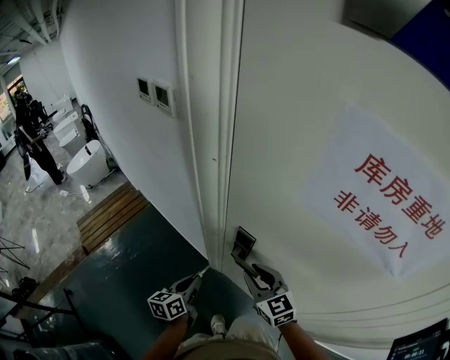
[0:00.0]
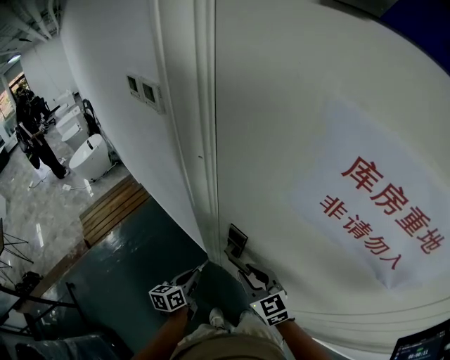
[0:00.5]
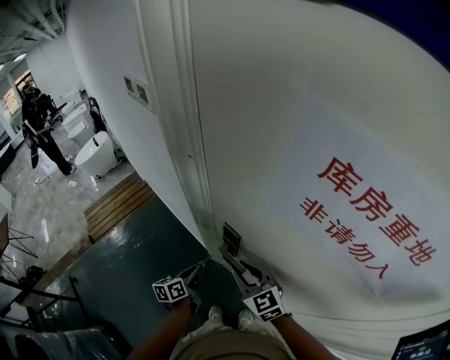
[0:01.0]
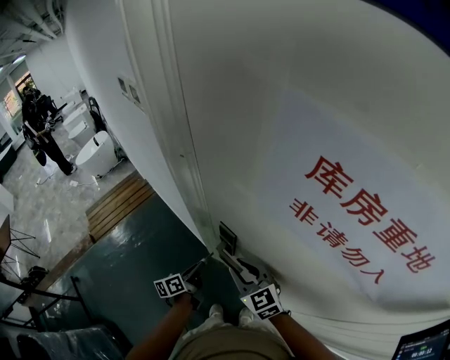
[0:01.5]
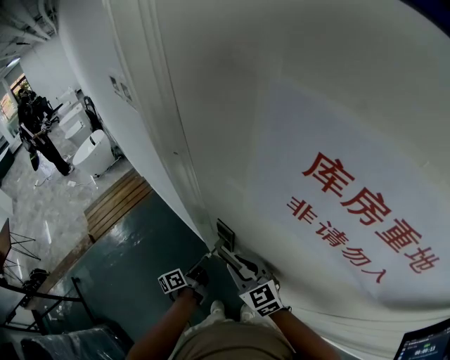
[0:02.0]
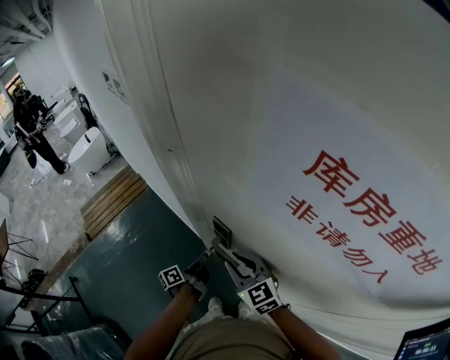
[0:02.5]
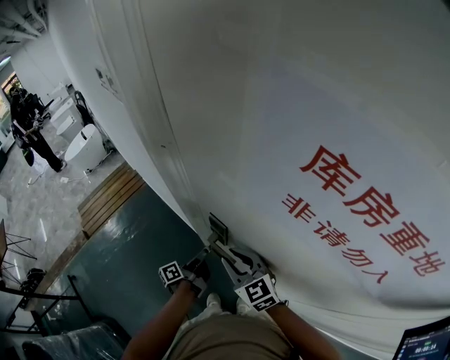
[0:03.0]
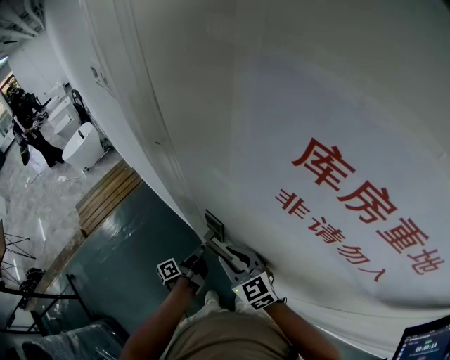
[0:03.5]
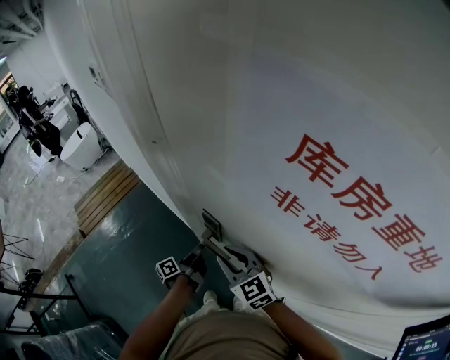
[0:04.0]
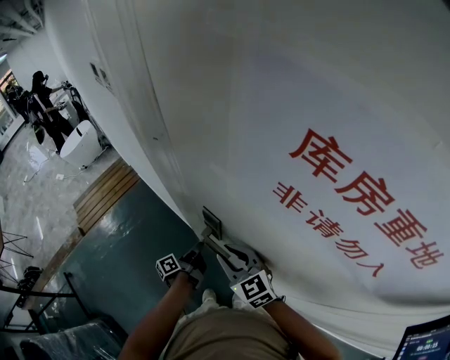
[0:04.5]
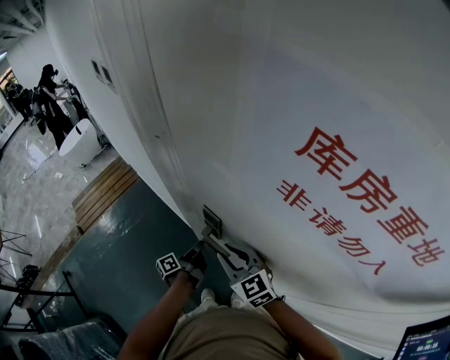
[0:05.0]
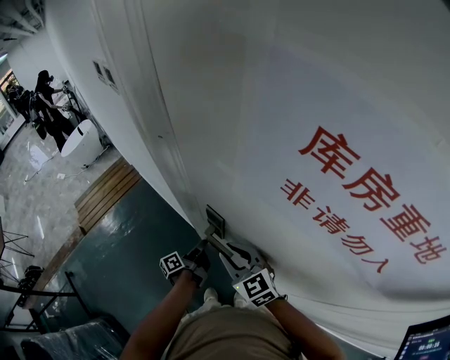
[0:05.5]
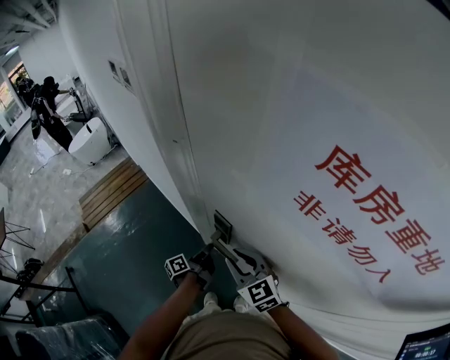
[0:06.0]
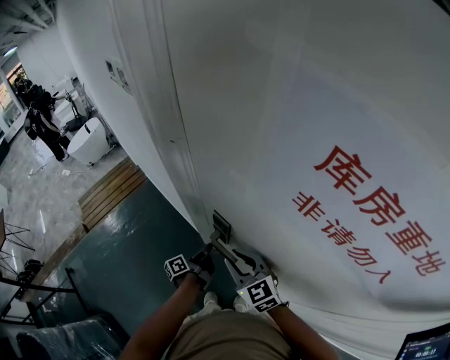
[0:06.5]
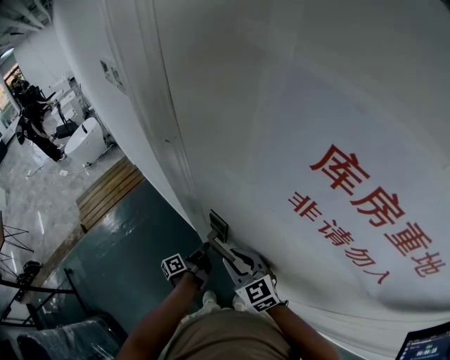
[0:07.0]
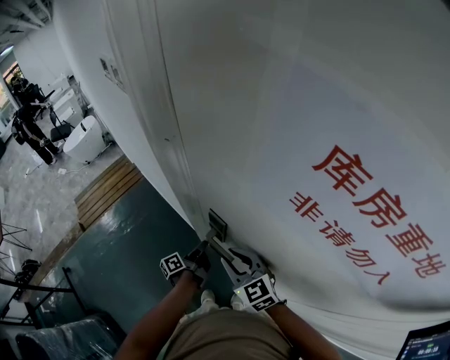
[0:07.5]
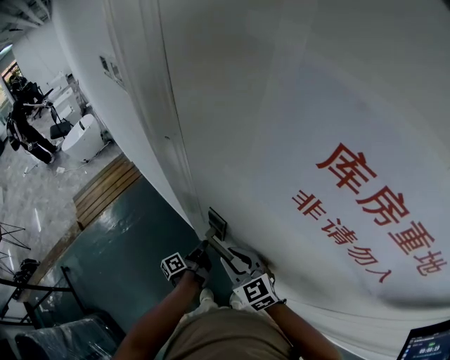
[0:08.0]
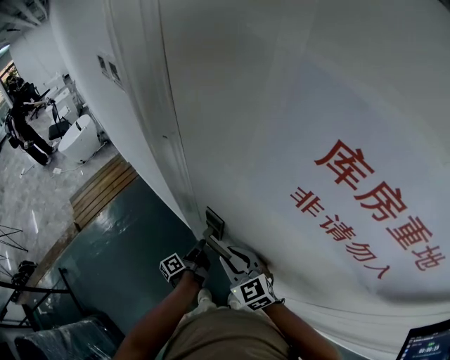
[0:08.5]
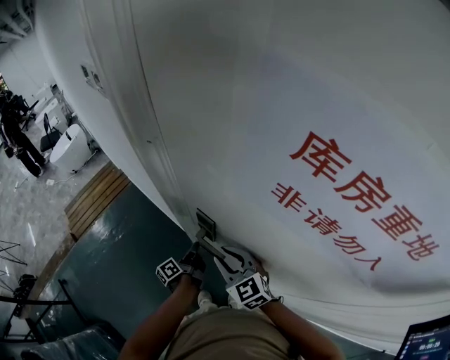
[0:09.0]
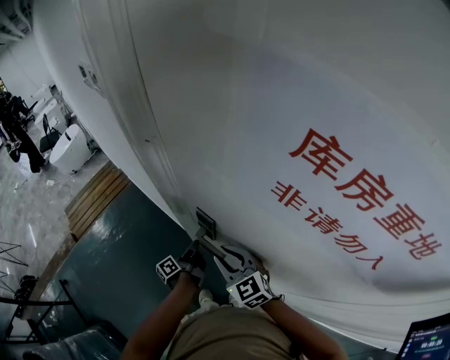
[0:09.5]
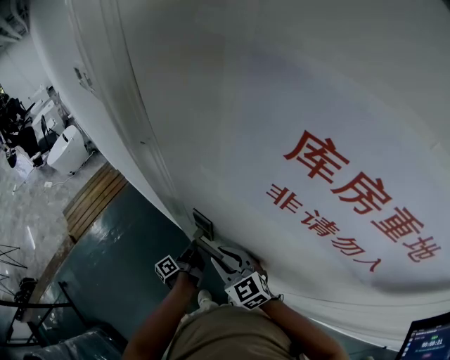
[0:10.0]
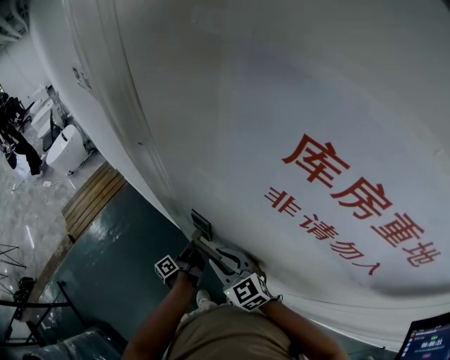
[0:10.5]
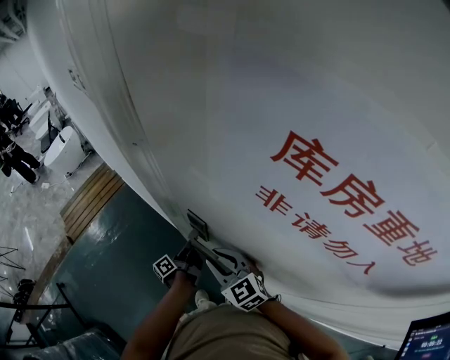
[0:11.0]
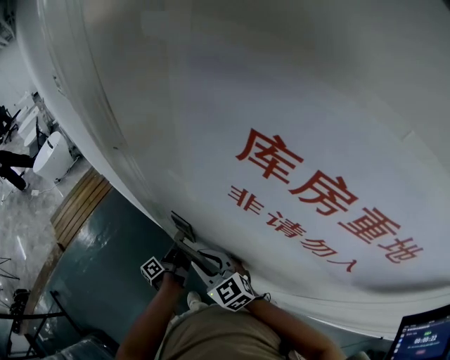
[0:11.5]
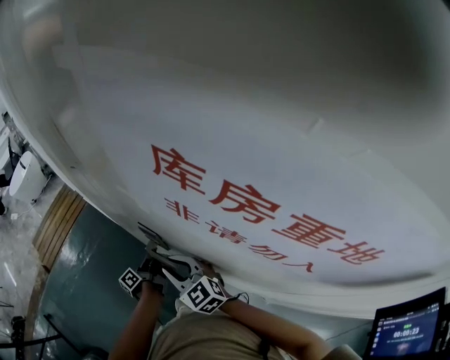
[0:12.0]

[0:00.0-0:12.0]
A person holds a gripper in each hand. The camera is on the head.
0:00.0 to 0:02.0: The left gripper heads to the right and downward, covering about 10 cm, and rotates about 40 degrees.
0:02.0 to 0:06.0: The grippers move only a little.
0:06.0 to 0:08.0: The two grippers keep their place.
0:08.0 to 0:10.0: Both grippers stay put.
0:10.0 to 0:12.0: The grippers stay close to where they were, moving slightly.

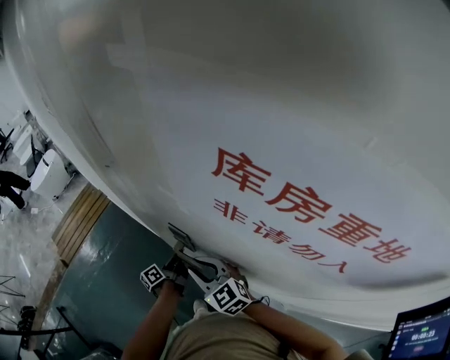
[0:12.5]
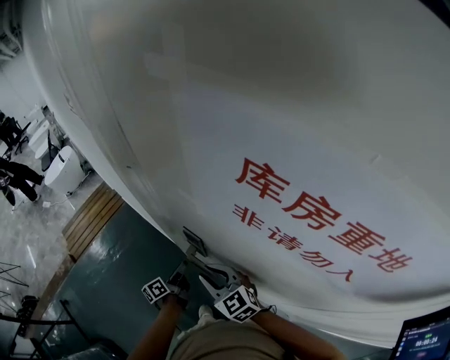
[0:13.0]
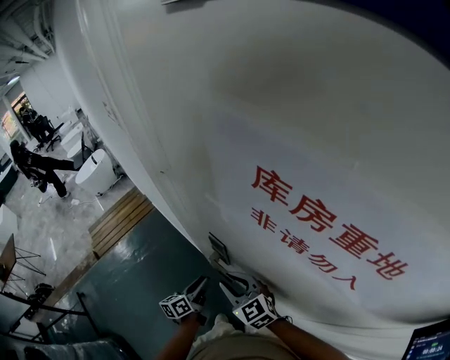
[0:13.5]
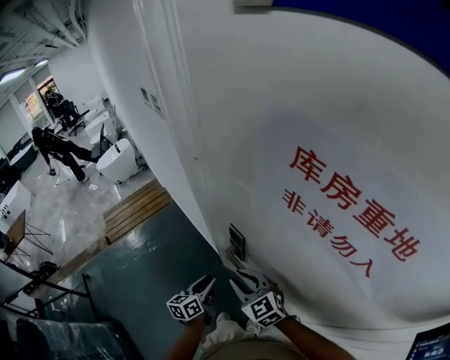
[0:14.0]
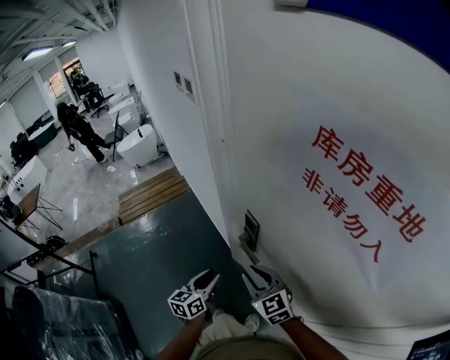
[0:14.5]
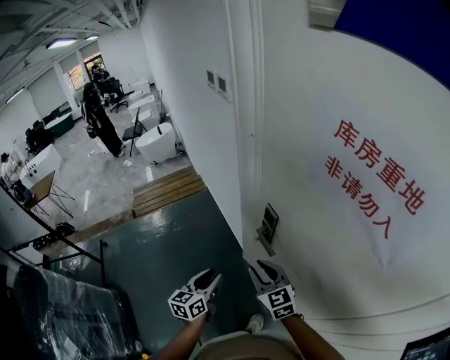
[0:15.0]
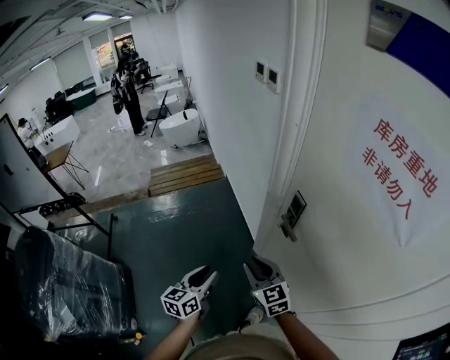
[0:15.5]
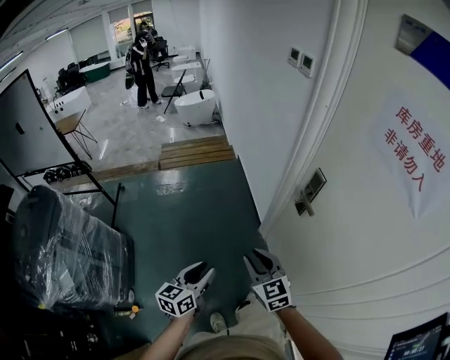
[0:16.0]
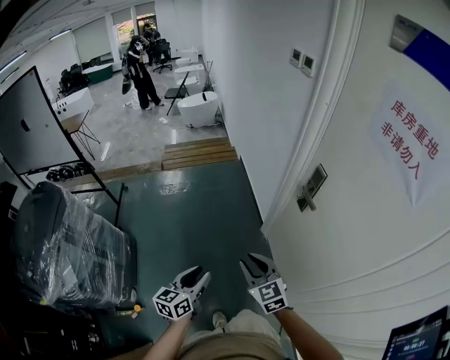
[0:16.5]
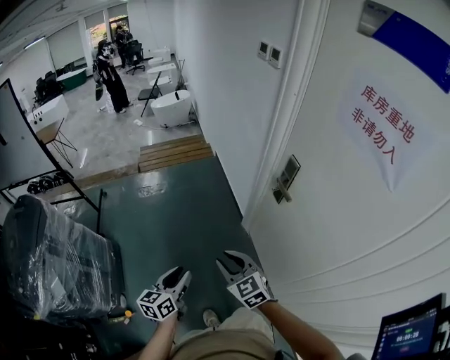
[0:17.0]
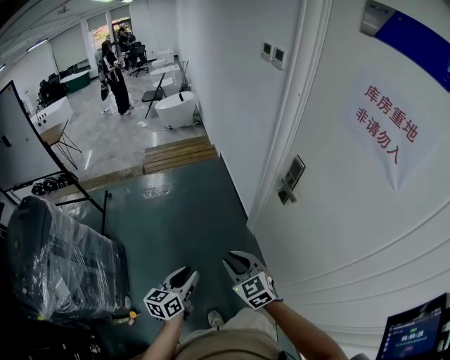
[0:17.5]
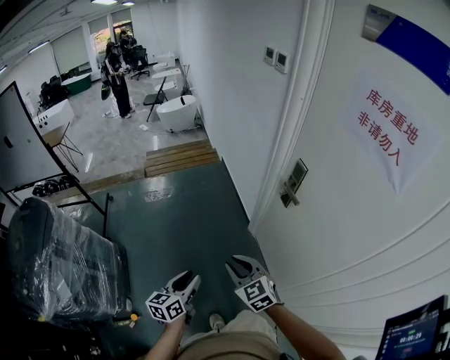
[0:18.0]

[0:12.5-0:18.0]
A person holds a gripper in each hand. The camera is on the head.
0:12.5 to 0:14.5: The left gripper heads backward, upward and to the left, covering roughly 20 cm, twists some 50 degrees clockwise, seen from behind, and opens its fingers. The right gripper is displaced backward by about 5 cm.
0:14.5 to 0:16.0: The left gripper heads backward and to the left, covering some 35 cm, while the right gripper goes some 30 cm to the left and backward.
0:16.0 to 0:18.0: The right gripper ends up approximately 5 cm from where it was; the left gripper moves about 5 cm.

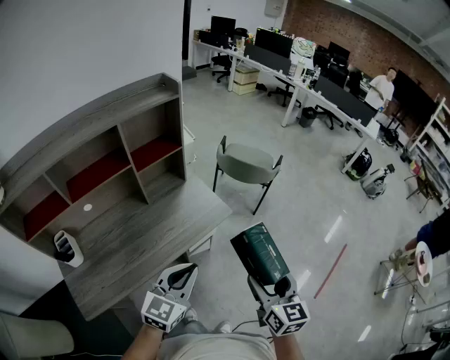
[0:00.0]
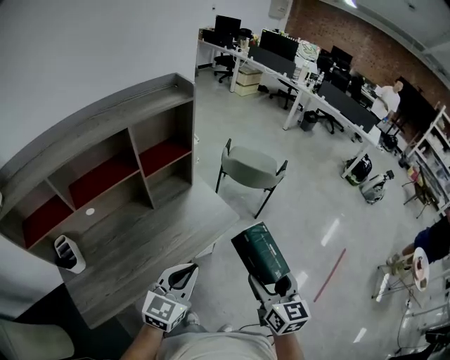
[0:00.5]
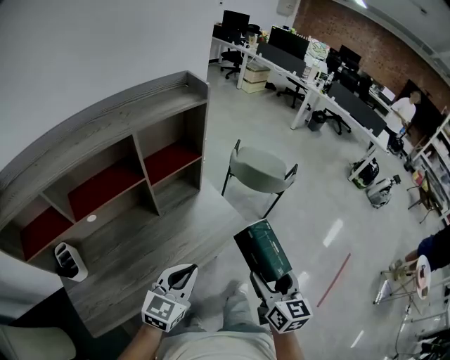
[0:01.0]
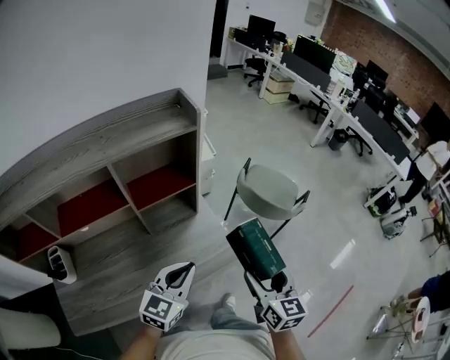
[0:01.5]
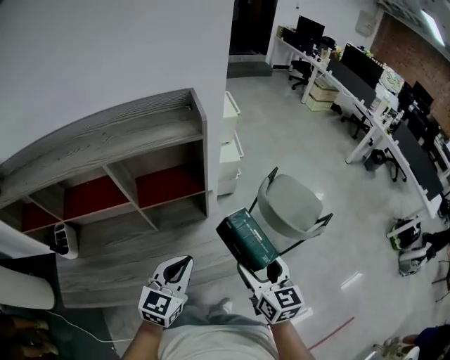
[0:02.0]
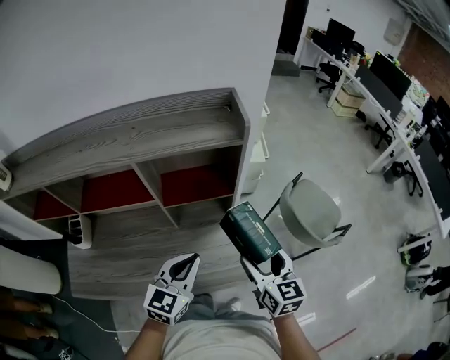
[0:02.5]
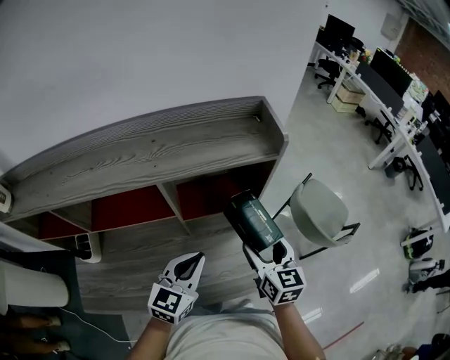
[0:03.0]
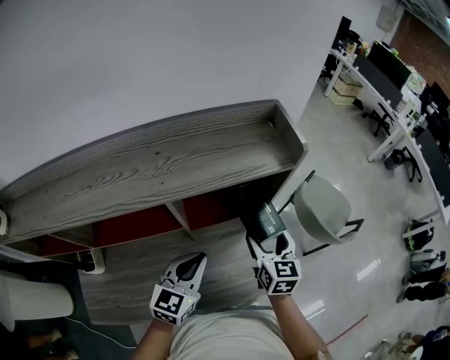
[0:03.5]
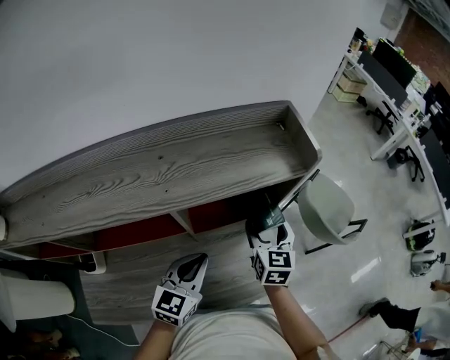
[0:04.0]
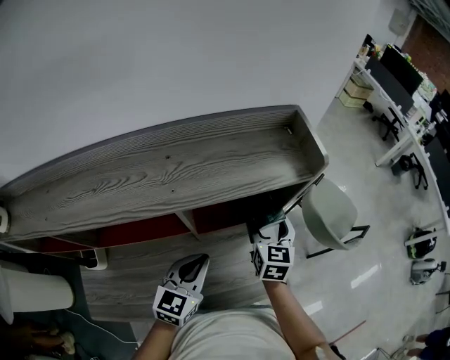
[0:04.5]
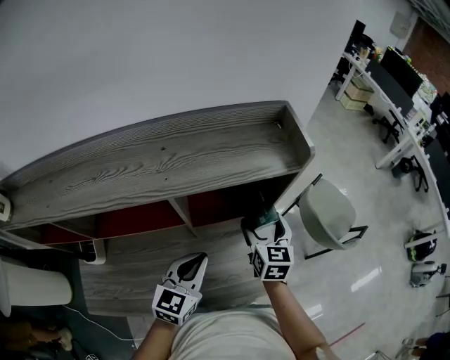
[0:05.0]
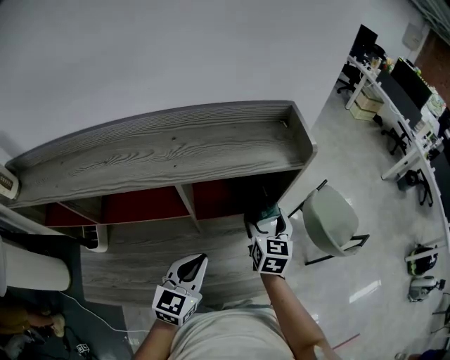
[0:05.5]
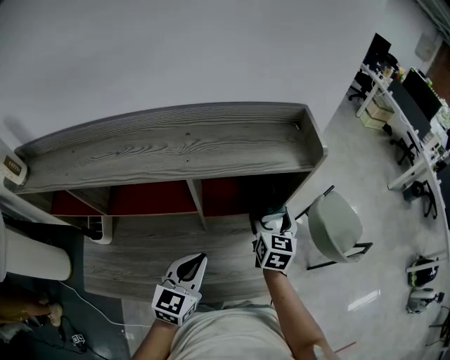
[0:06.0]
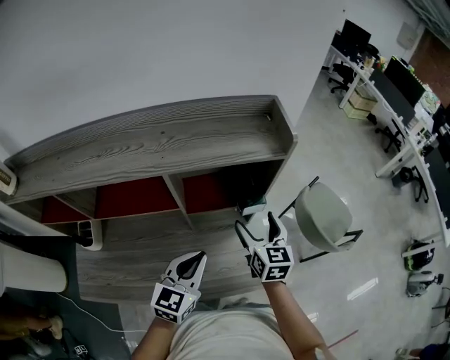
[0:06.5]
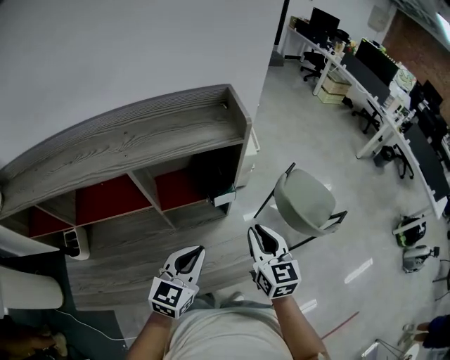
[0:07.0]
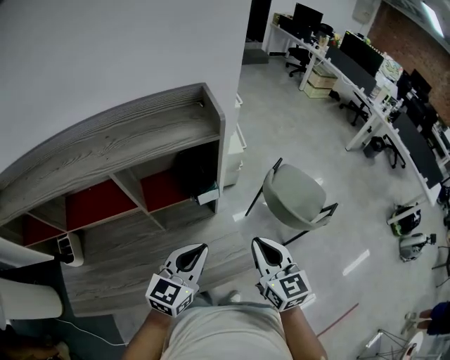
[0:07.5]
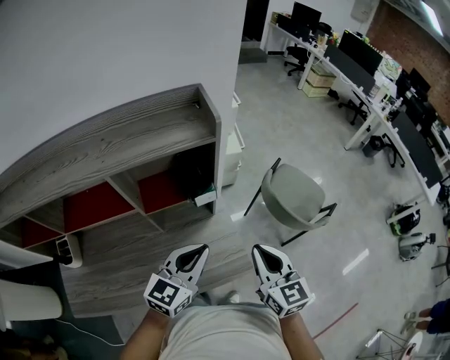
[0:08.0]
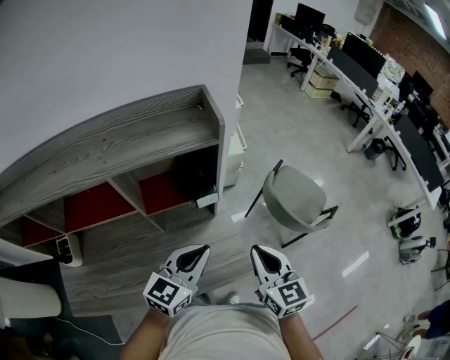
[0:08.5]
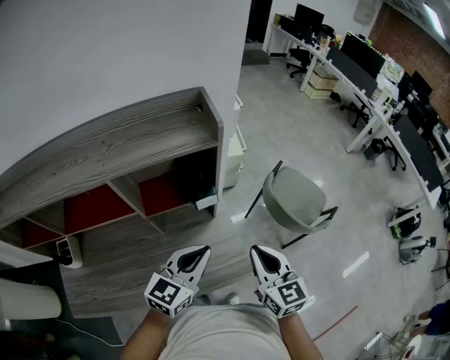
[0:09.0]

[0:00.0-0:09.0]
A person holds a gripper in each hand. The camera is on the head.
0:00.0 to 0:02.0: The right gripper shifts by roughly 40 cm, and changes its angle by approximately 30 degrees. Meanwhile the left gripper shifts by roughly 35 cm, and rotates approximately 30 degrees.
0:02.0 to 0:04.5: The left gripper goes approximately 20 cm to the left and forward; the right gripper travels forward and to the left by some 30 cm.
0:04.5 to 0:07.0: The left gripper heads to the right and backward, covering approximately 15 cm. Meanwhile the right gripper heads backward and to the right, covering some 15 cm, and closes up.
0:07.0 to 0:09.0: The right gripper changes place by approximately 5 cm. Meanwhile the left gripper heads to the right, covering roughly 5 cm.
